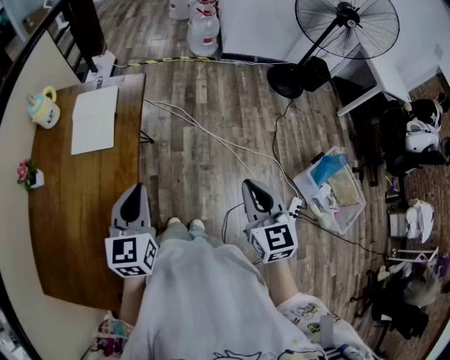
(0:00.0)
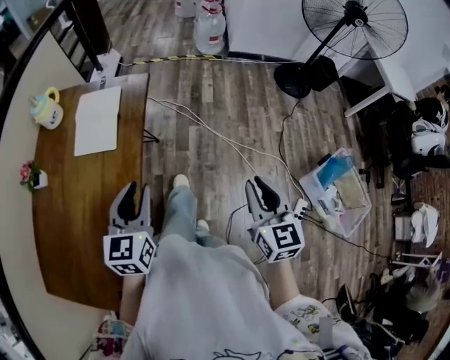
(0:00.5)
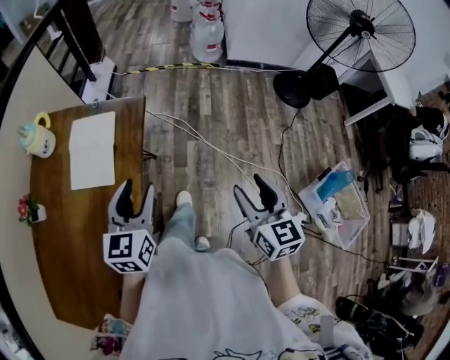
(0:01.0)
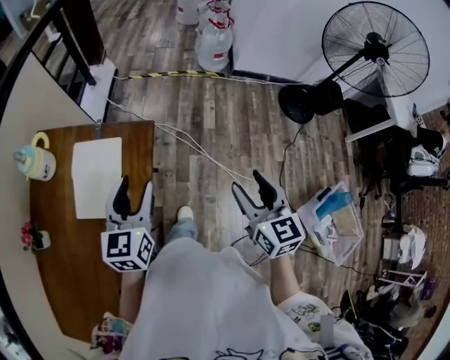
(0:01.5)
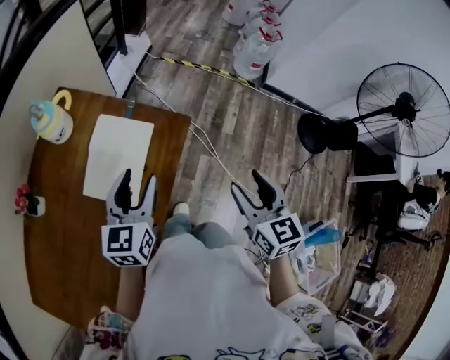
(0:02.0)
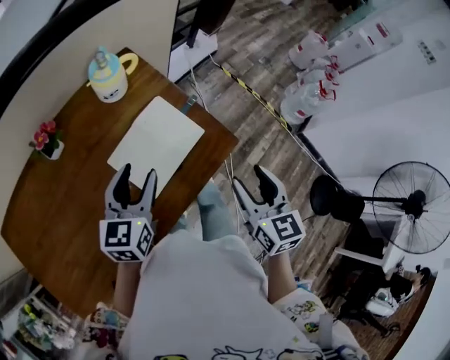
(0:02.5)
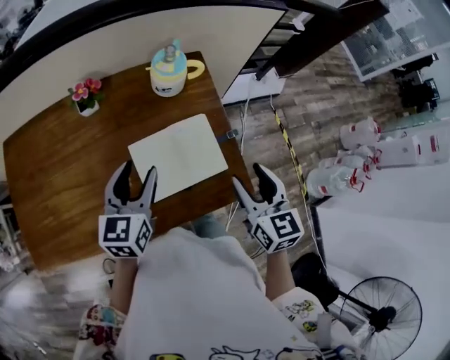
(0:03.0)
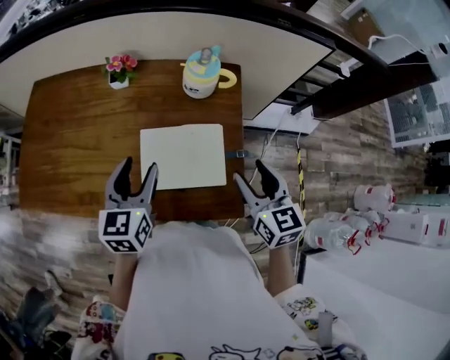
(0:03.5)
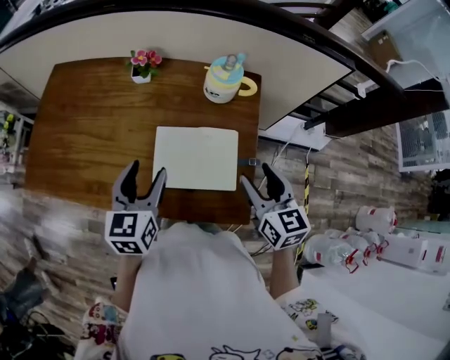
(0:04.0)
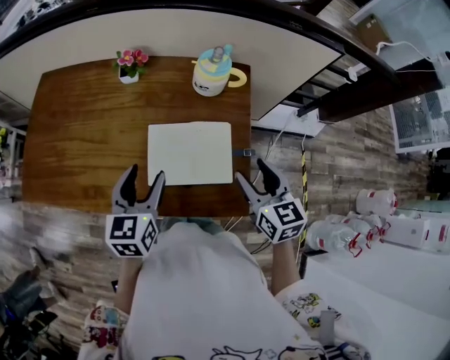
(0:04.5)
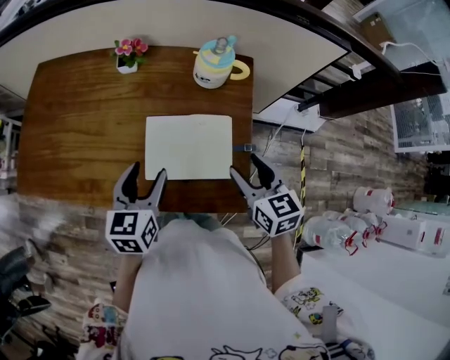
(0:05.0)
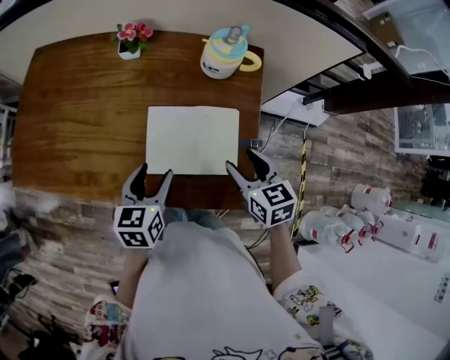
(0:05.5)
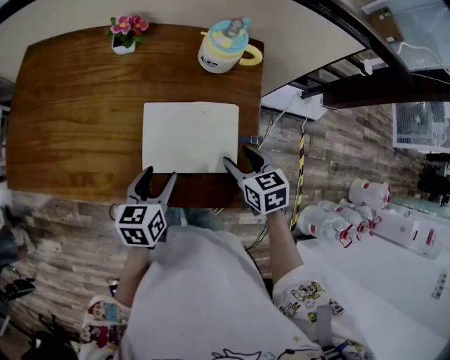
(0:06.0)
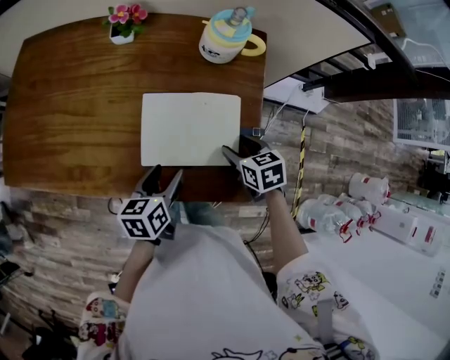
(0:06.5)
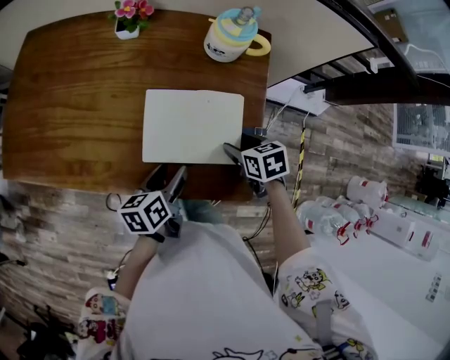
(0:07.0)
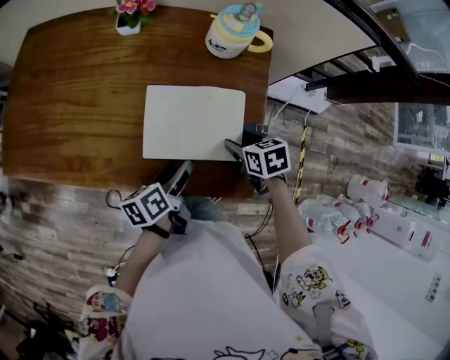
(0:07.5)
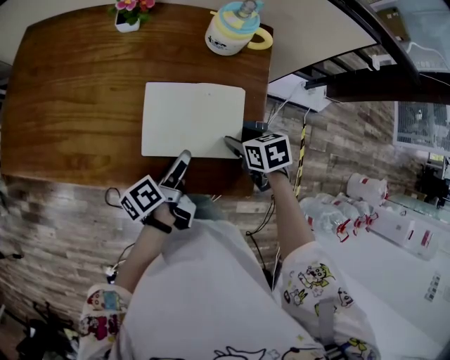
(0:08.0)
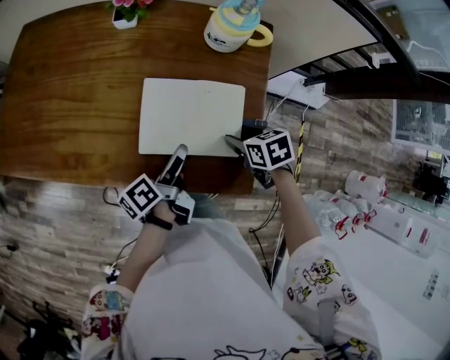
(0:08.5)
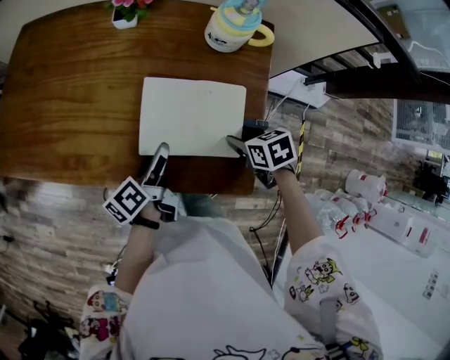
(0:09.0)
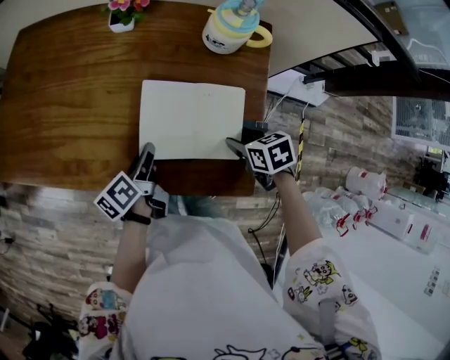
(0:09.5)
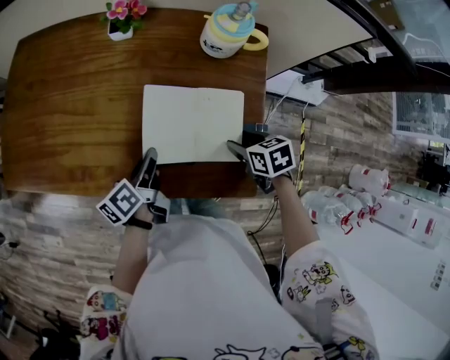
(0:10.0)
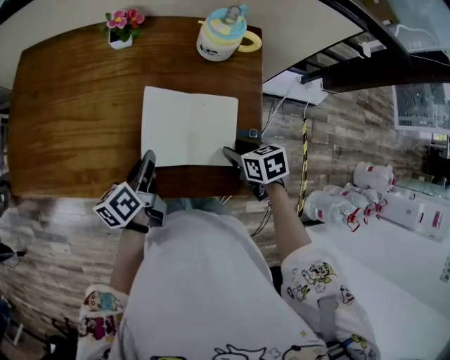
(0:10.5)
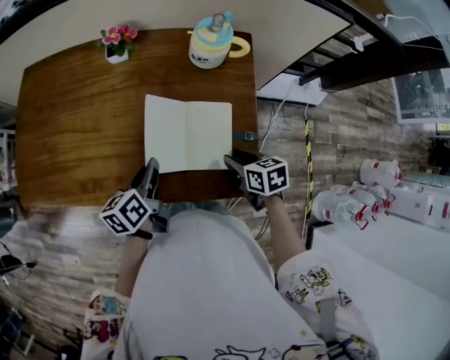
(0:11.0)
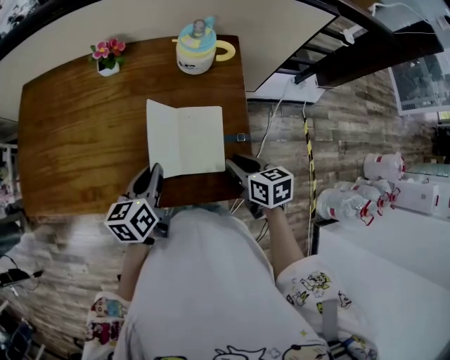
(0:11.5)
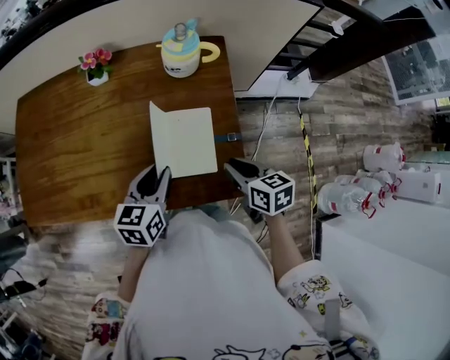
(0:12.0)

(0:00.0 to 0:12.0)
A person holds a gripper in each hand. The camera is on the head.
0:00.0 - 0:02.0: Both grippers move forward, roughly 35 cm. The left gripper opens; the right gripper changes its angle by some 20 degrees, and opens its fingers.
0:02.0 - 0:04.0: The right gripper changes place by about 35 cm, and turns by roughly 80 degrees, while the left gripper ends up approximately 10 cm from where it was, and turns by approximately 80 degrees.
0:04.0 - 0:06.0: The grippers both shift downward by roughly 15 cm. The right gripper changes its angle by about 30 degrees; the left gripper changes its angle by roughly 20 degrees.
0:06.0 - 0:08.0: The left gripper ends up some 5 cm from where it was, and twists approximately 50 degrees counterclockwise, seen from behind. Meanwhile the right gripper heads downward, covering approximately 5 cm.
0:08.0 - 0:10.0: The left gripper shifts about 10 cm to the left and forward, and closes its fingers.
0:10.0 - 0:12.0: The left gripper shifts some 10 cm to the right and upward, and rolls clockwise, seen from behind, by some 50 degrees. Meanwhile the right gripper moves upward and backward, roughly 10 cm, swivels about 30 degrees, and closes.

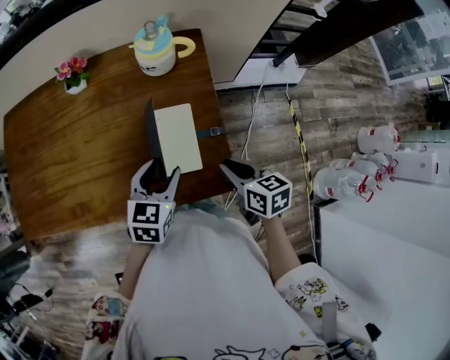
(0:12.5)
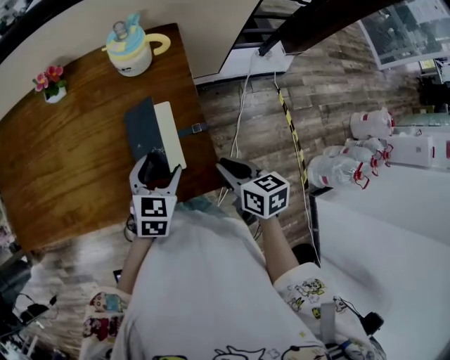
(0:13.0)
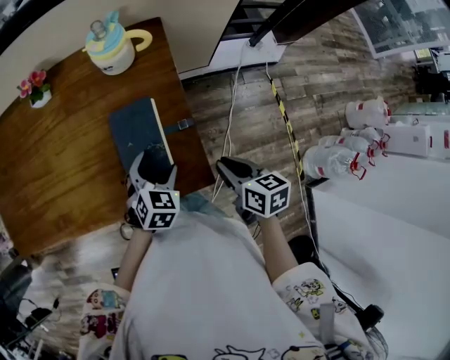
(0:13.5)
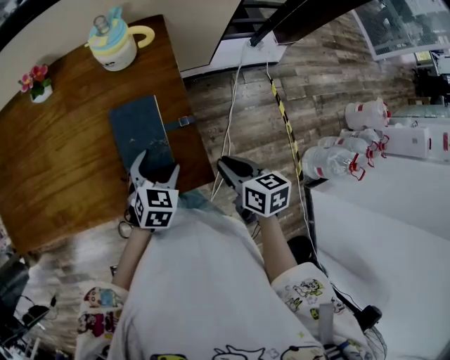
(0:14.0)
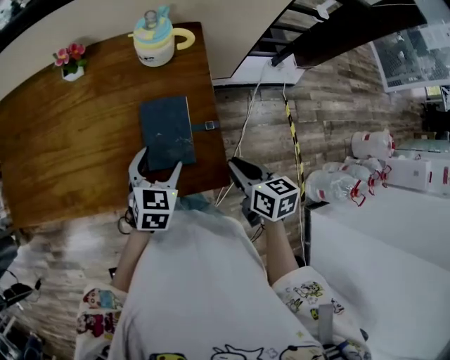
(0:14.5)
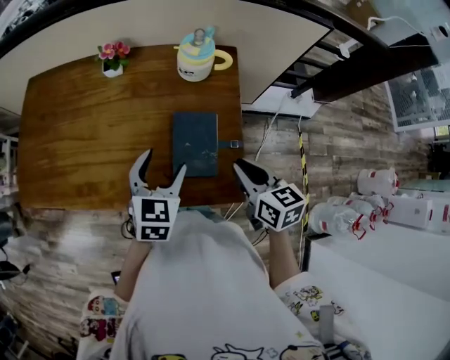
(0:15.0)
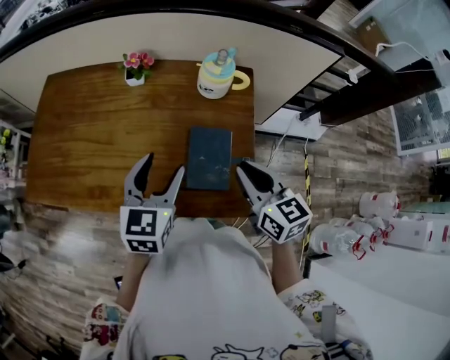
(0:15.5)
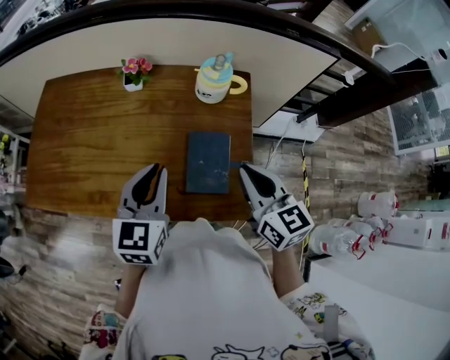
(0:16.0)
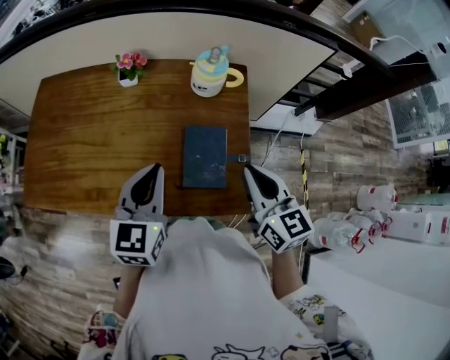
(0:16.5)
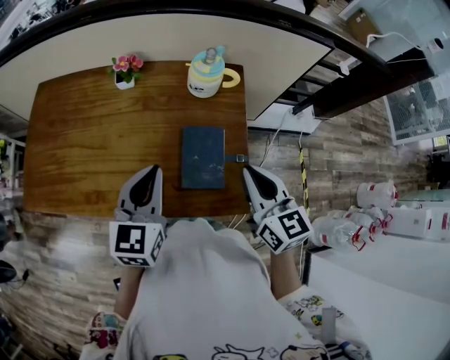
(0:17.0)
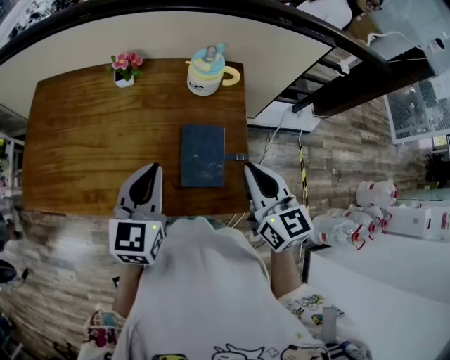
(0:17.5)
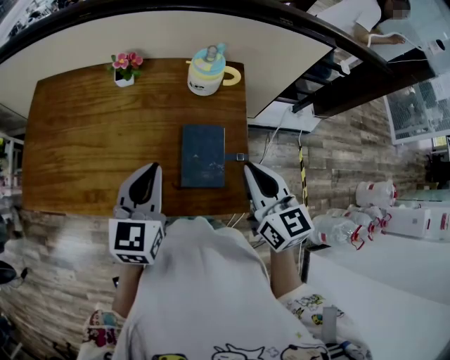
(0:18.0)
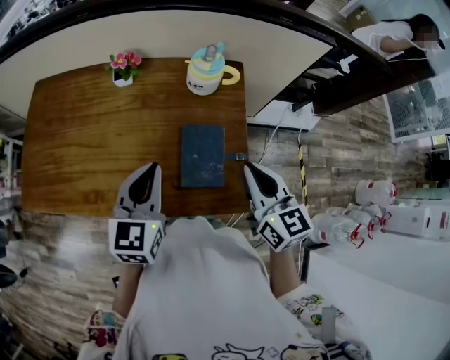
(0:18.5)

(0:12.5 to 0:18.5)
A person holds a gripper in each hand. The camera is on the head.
0:12.5 - 0:14.5: The left gripper opens up.
0:14.5 - 0:16.5: The right gripper goes approximately 20 cm upward, to the left and forward, and changes its angle by about 30 degrees. The left gripper goes roughly 20 cm upward and to the left, changes its angle by about 30 degrees, and closes.
0:16.5 - 0:18.5: The two grippers keep their place.

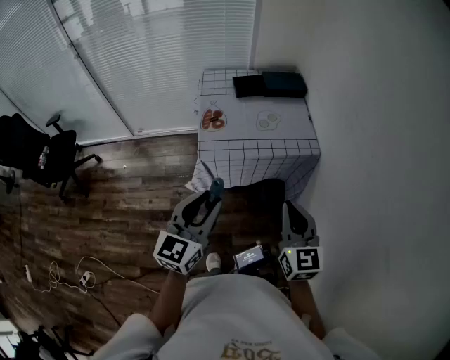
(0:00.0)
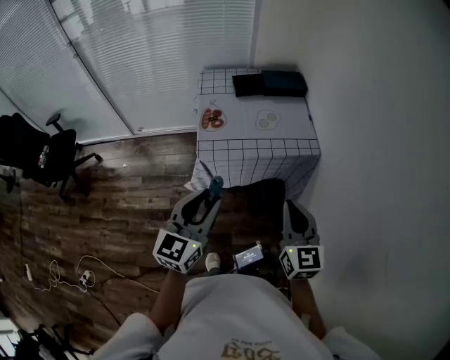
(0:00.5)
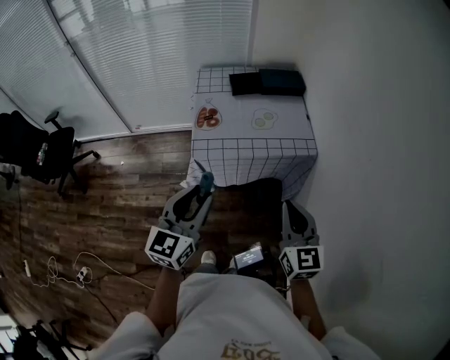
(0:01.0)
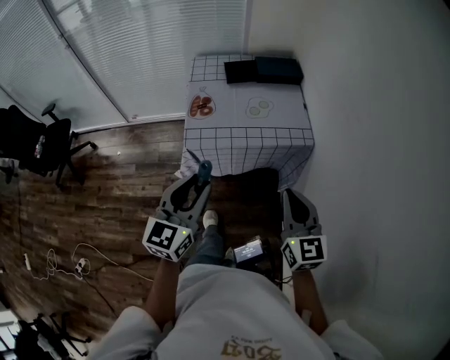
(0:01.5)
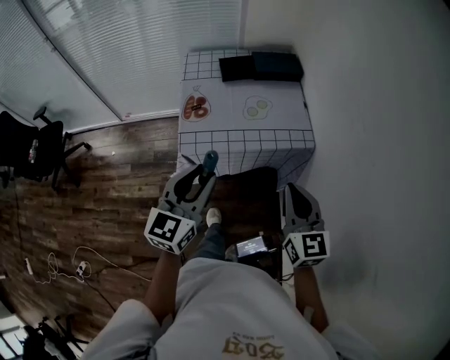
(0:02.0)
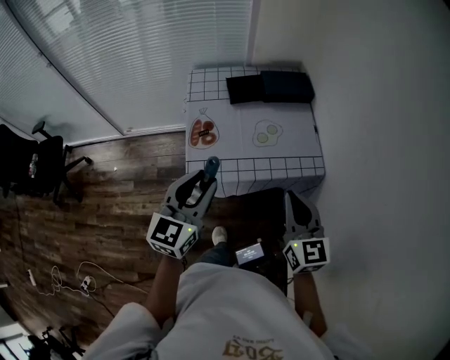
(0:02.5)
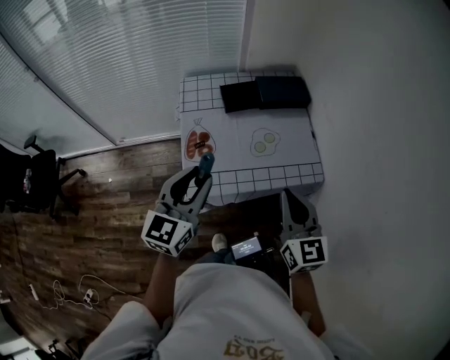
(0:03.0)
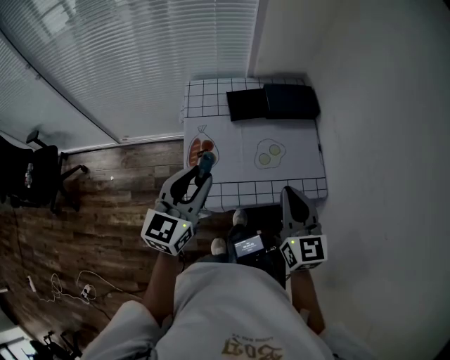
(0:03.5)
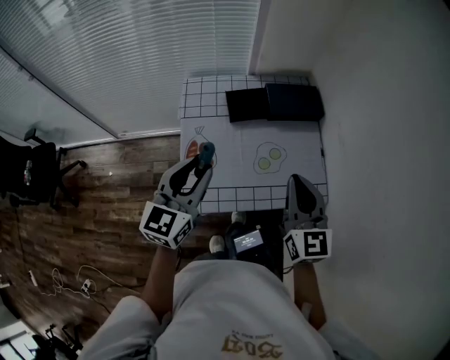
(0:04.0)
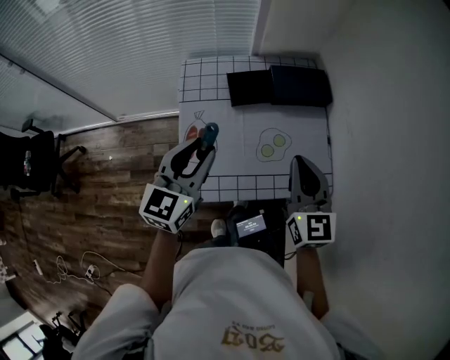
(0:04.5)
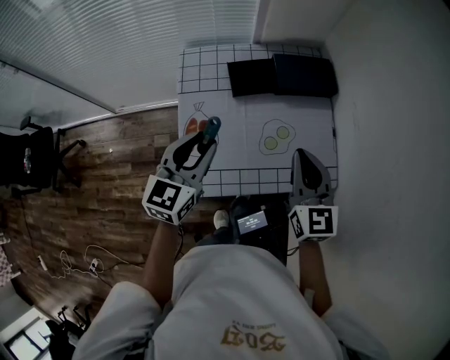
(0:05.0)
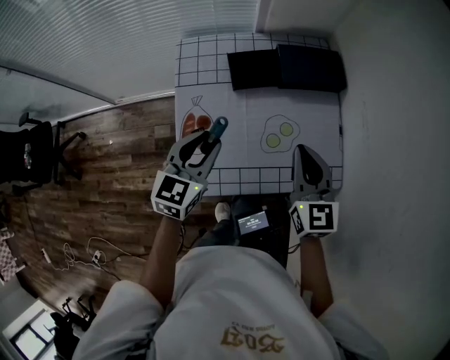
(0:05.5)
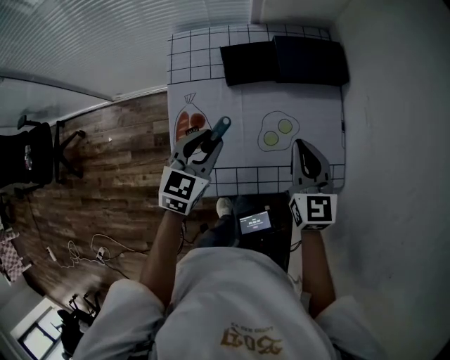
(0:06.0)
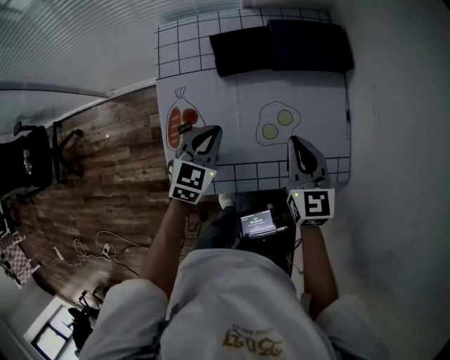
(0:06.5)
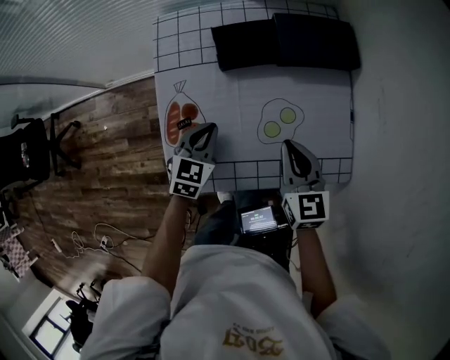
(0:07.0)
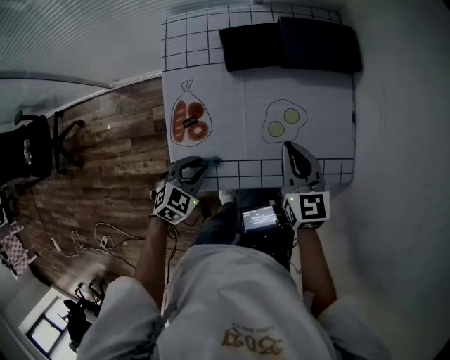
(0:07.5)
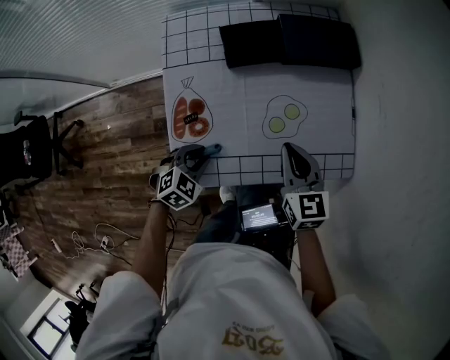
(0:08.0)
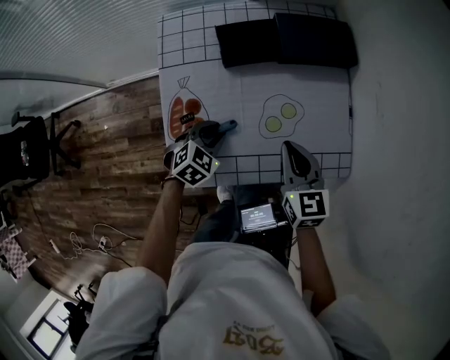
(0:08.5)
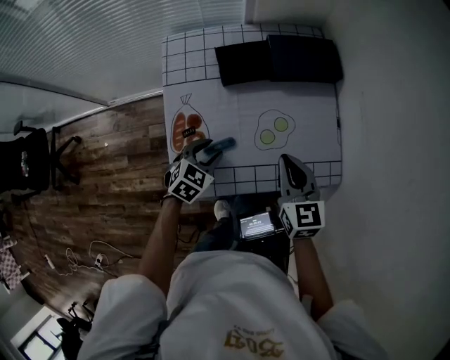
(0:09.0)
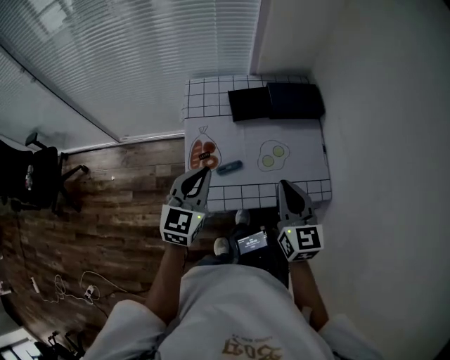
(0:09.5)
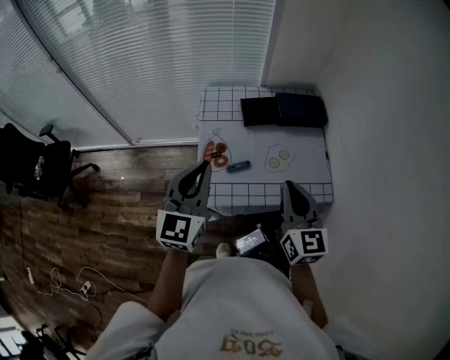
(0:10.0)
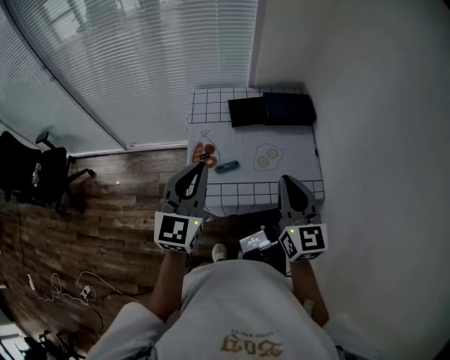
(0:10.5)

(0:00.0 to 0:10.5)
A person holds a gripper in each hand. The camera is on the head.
0:00.0 - 0:02.0: The right gripper heads forward and to the right, covering some 10 cm; the left gripper goes some 10 cm forward.
0:02.0 - 0:04.0: Both grippers travel together forward, approximately 25 cm.
0:04.0 - 0:06.5: The grippers both shift downward and forward by some 20 cm. The left gripper rotates some 30 degrees, and closes.
0:06.5 - 0:08.5: The left gripper moves downward, about 10 cm, reaches about 15 cm backward, then returns, swivels some 30 degrees, and opens its fingers.
0:08.5 - 0:10.5: The left gripper moves upward, roughly 35 cm, tips its fingers upward by about 50 degrees, and closes its fingers; the right gripper heads upward and backward, covering about 25 cm, and changes its angle by some 30 degrees.
